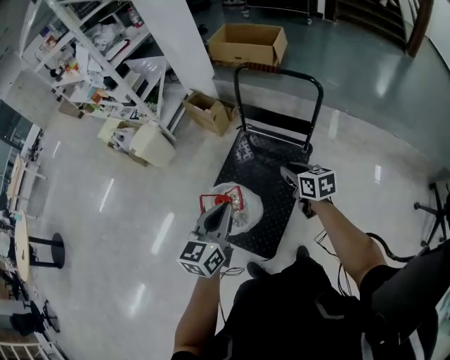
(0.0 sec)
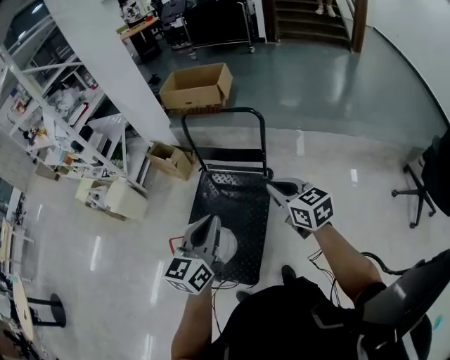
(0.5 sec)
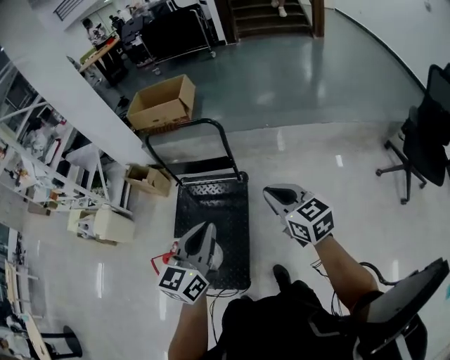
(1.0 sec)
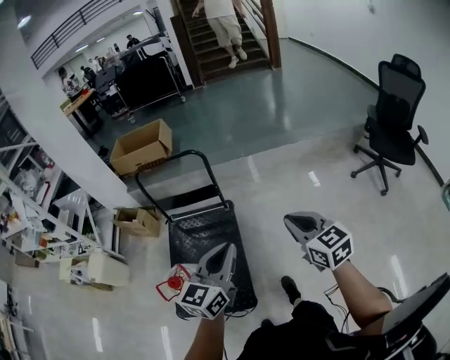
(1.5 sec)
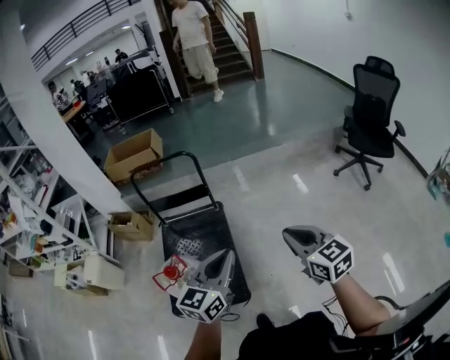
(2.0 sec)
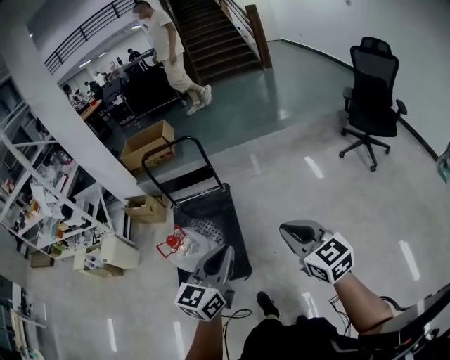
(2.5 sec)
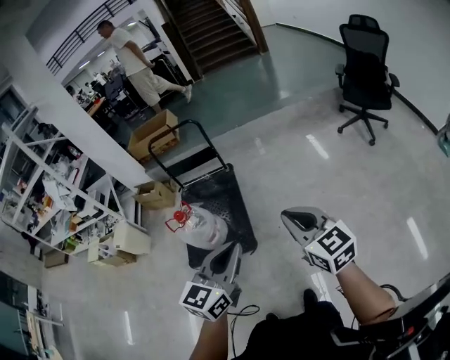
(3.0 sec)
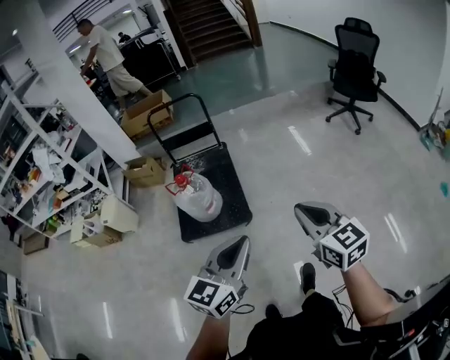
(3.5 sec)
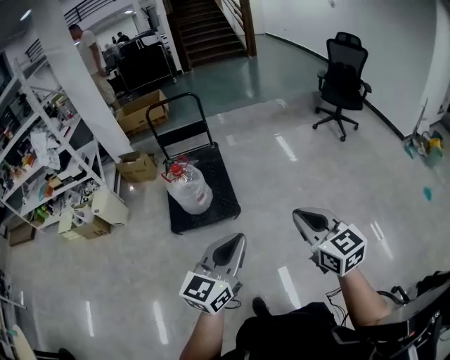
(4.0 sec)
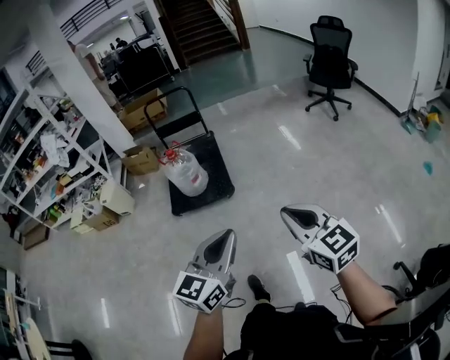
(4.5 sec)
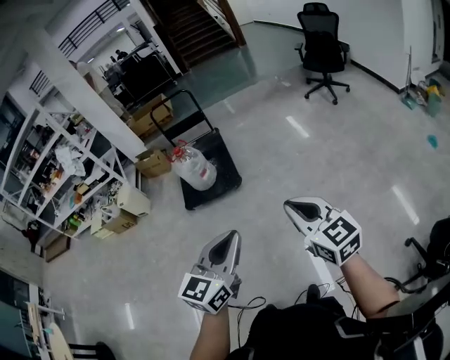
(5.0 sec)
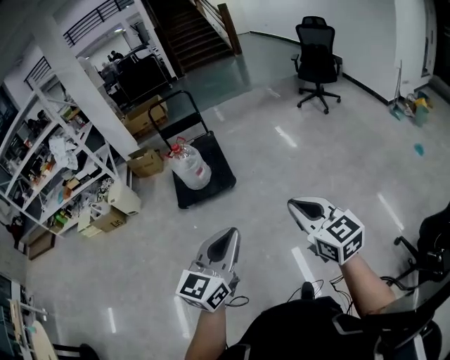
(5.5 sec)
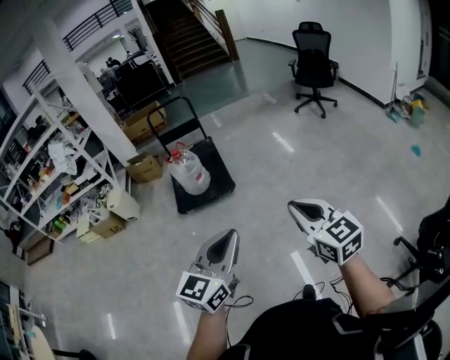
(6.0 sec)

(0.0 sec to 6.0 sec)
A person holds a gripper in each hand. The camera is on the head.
0.0 sec - 2.0 sec: The right gripper changes place by some 50 cm, rotates about 40 degrees, and closes up. The left gripper changes place by about 30 cm, and turns by some 40 degrees.
2.0 sec - 4.0 sec: Both grippers are carried backward, roughly 60 cm.
4.0 sec - 6.0 sec: The grippers both shift backward by some 35 cm.

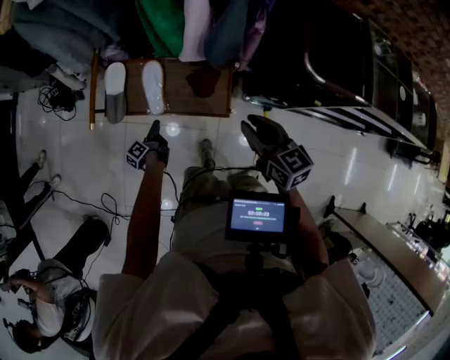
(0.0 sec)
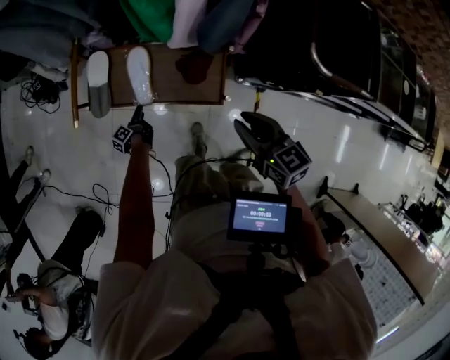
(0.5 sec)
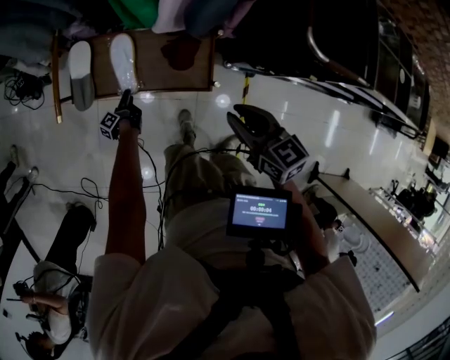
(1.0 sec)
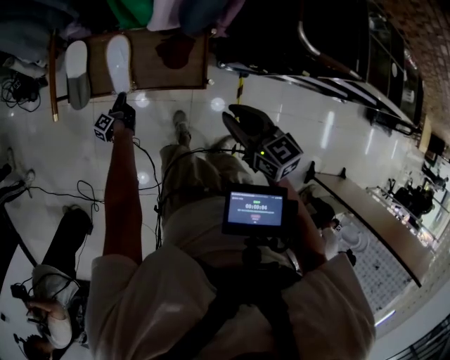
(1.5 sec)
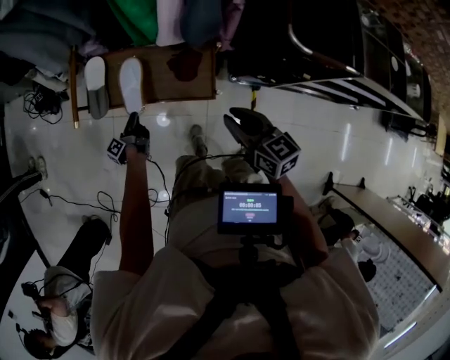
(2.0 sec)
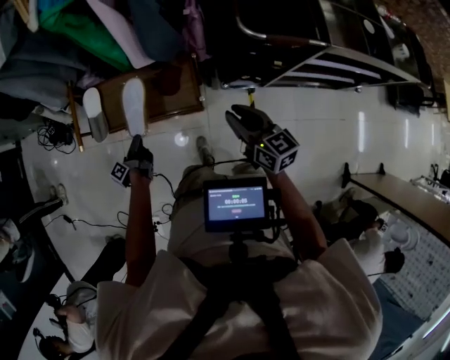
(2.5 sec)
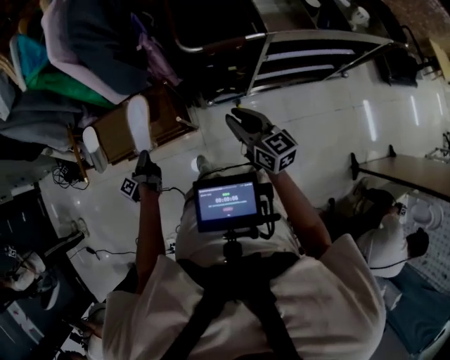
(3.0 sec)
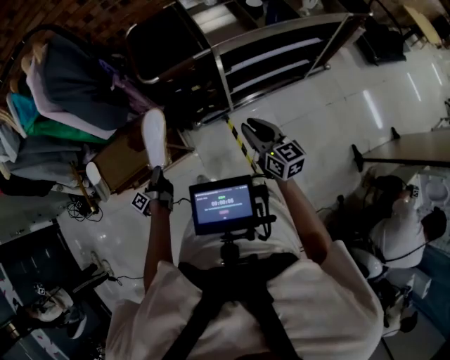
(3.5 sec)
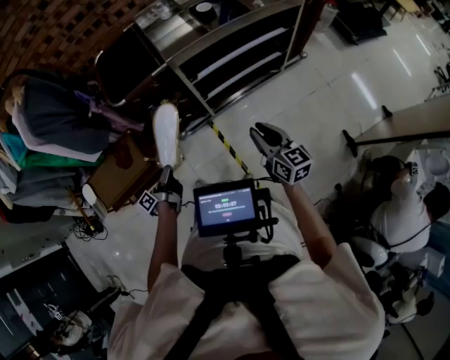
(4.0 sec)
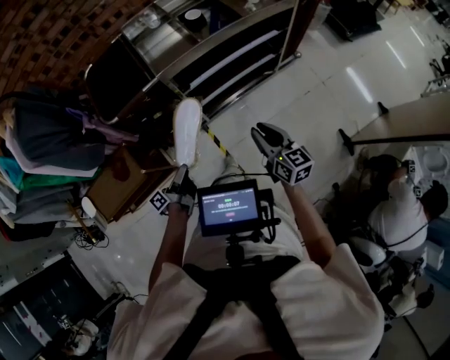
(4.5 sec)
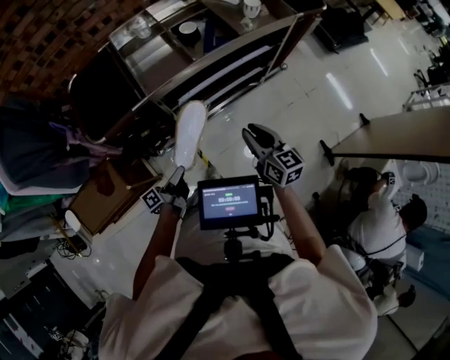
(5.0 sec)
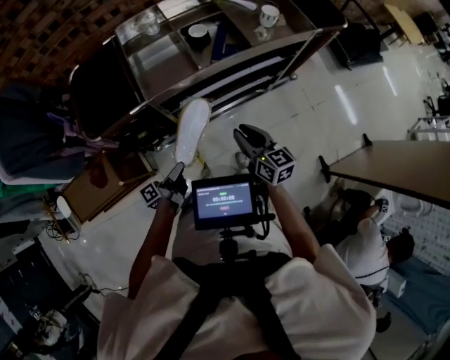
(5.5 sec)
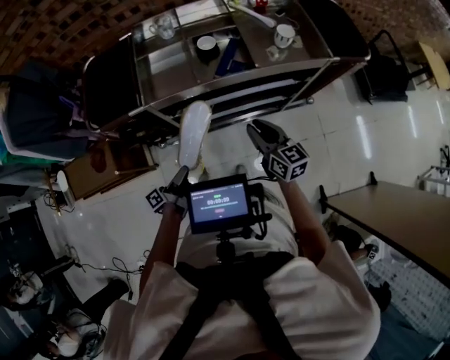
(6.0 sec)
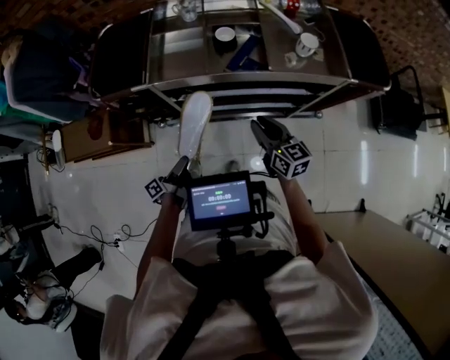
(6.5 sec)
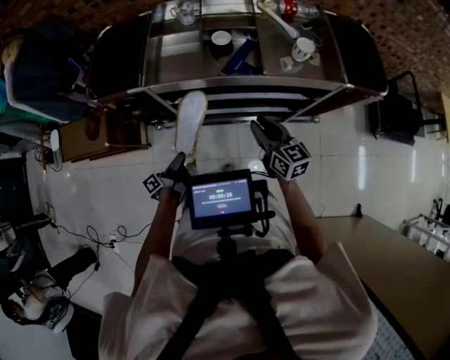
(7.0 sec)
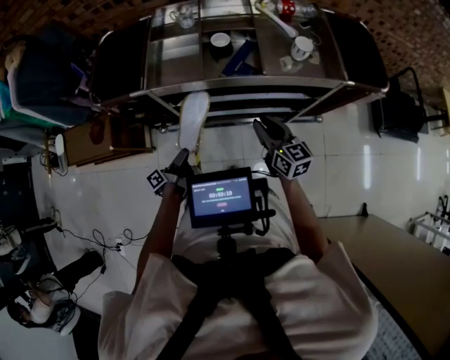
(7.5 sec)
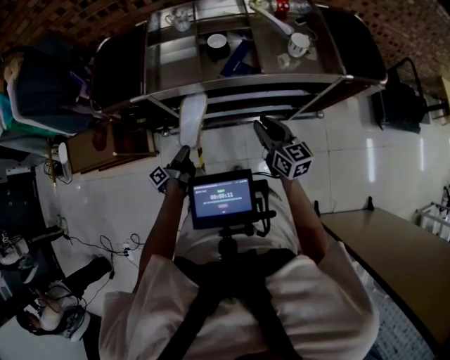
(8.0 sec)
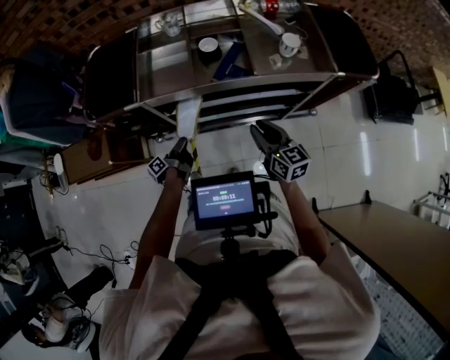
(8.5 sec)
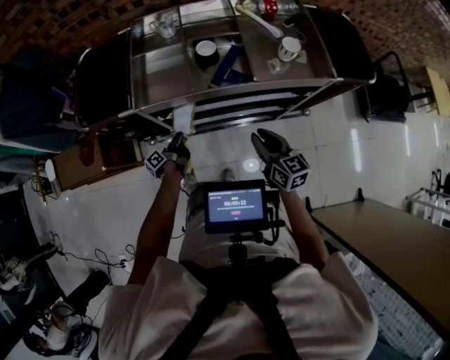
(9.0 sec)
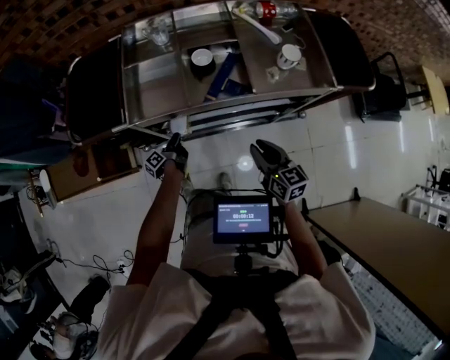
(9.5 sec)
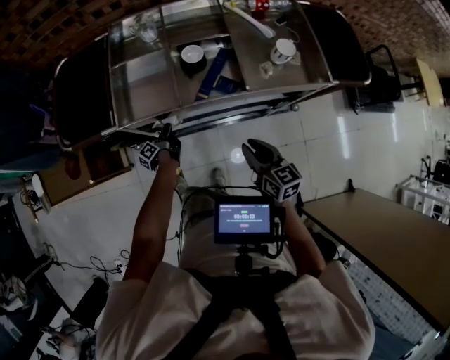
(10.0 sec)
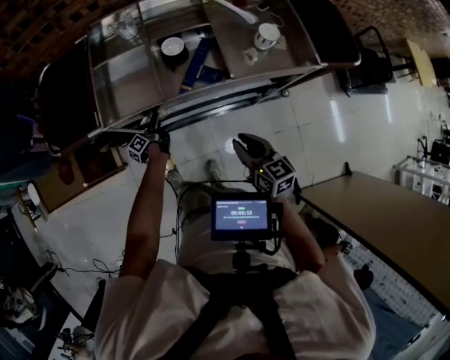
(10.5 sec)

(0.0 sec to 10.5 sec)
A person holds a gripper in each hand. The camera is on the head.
2.0 sec - 4.0 sec: The right gripper moves some 60 cm, and rotates approximately 40 degrees.
4.0 sec - 6.5 sec: The right gripper shifts by approximately 35 cm, and swivels about 30 degrees.

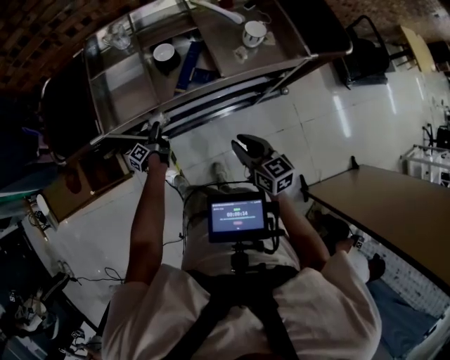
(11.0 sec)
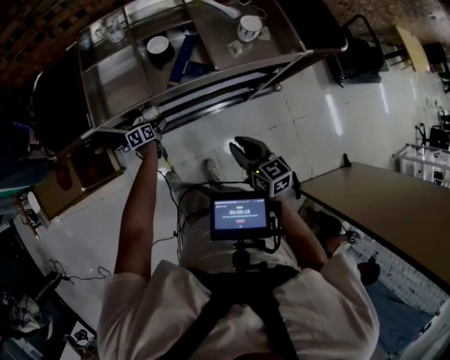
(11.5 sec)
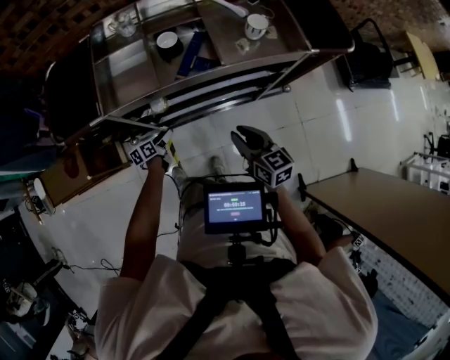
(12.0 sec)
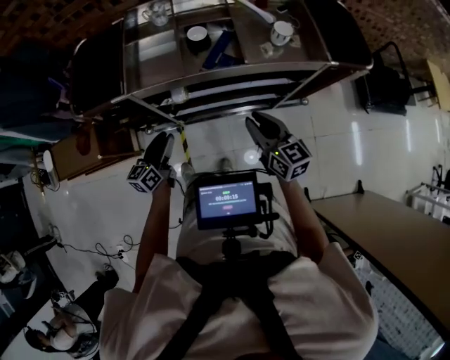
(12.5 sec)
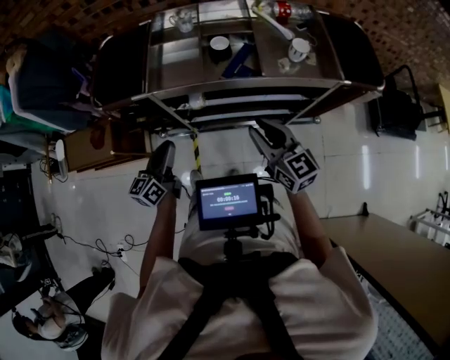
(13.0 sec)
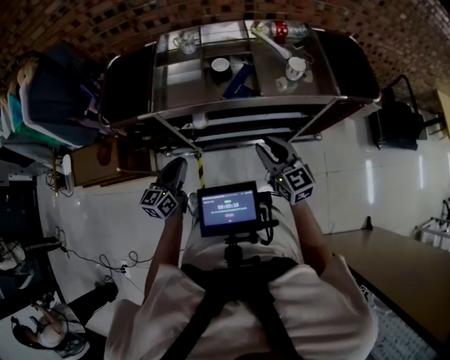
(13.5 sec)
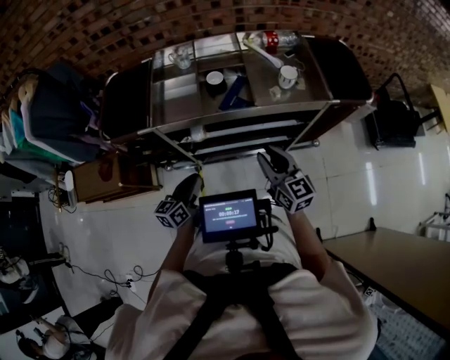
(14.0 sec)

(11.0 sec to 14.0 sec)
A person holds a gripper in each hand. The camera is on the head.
11.0 sec - 12.5 sec: The right gripper is displaced upward by some 5 cm.

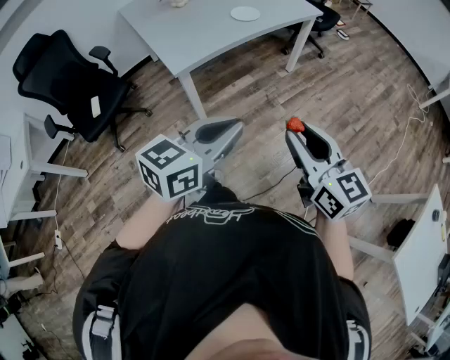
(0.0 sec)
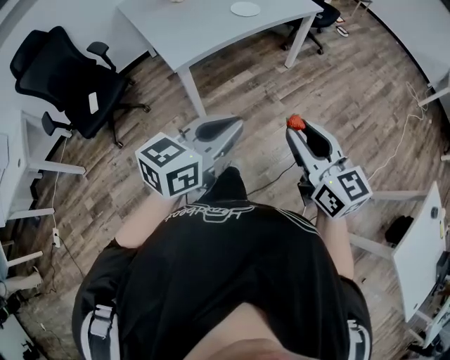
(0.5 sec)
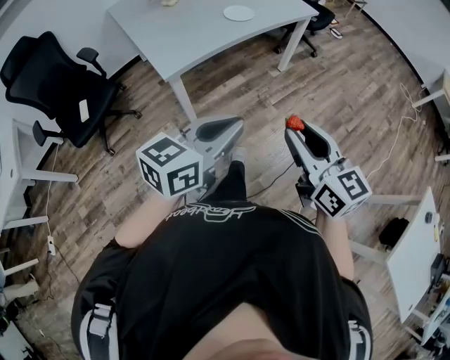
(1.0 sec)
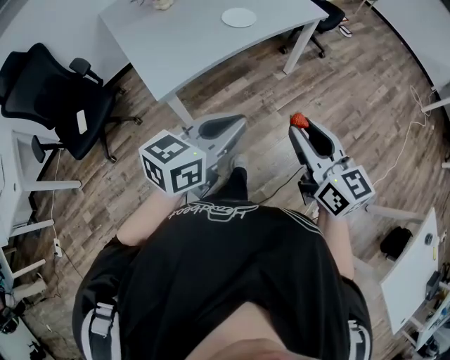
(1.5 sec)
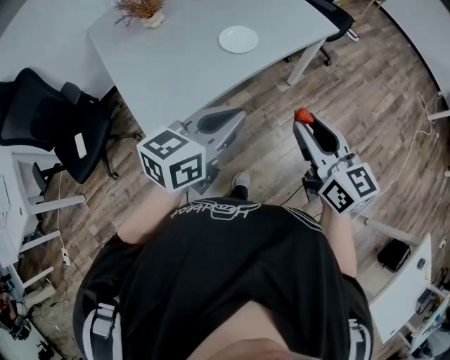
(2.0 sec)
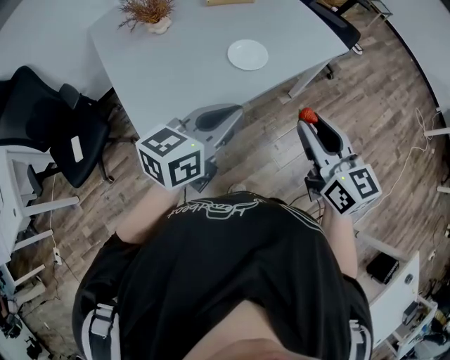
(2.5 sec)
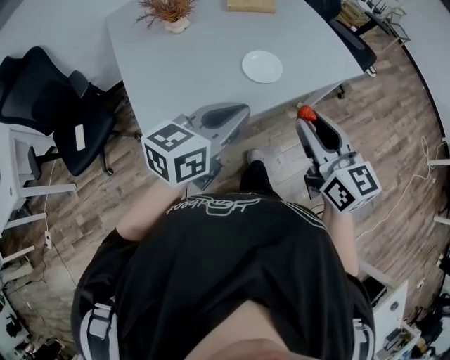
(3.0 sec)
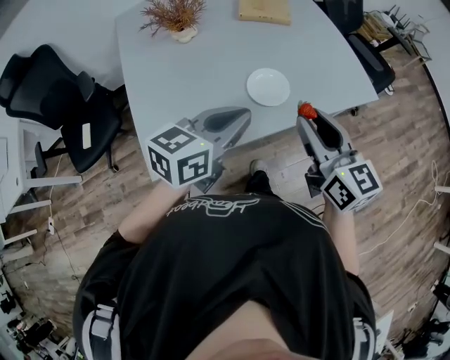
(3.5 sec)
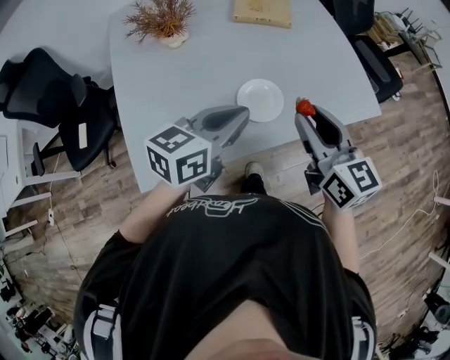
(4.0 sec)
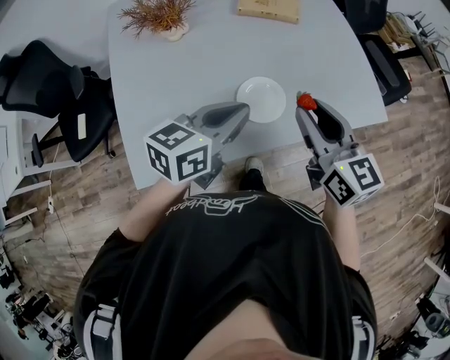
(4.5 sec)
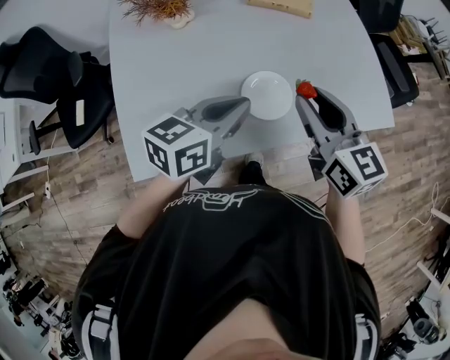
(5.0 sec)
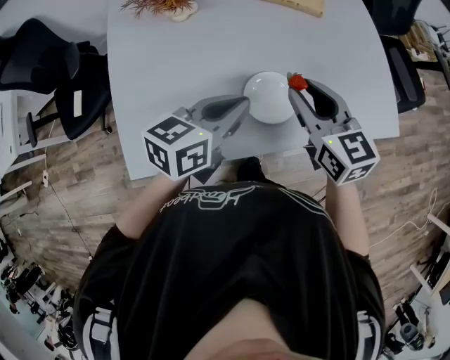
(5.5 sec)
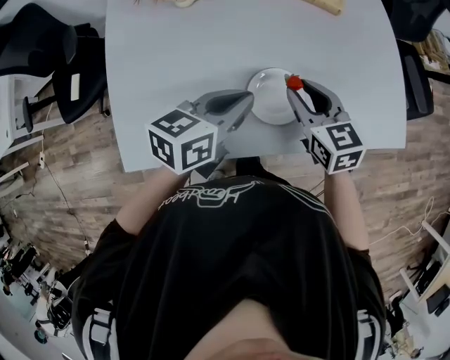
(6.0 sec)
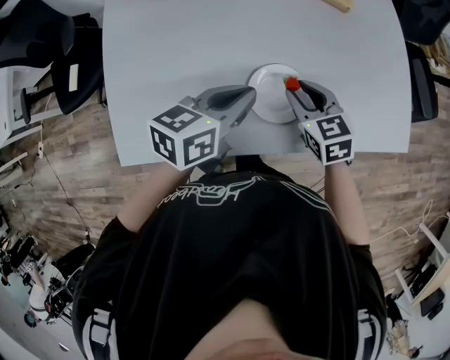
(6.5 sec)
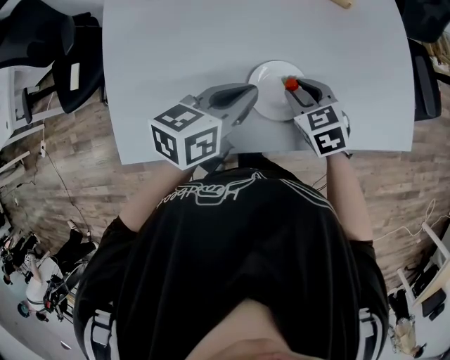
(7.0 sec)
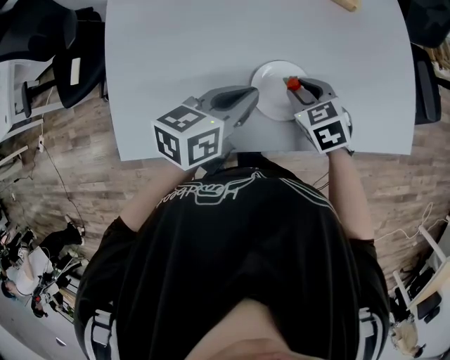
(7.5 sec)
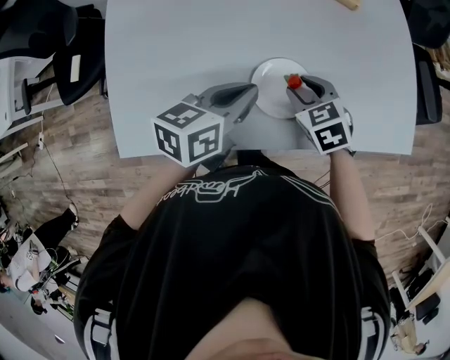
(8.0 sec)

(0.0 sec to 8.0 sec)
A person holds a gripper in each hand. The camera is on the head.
0.0 sec - 2.0 sec: The grippers both shift forward by roughly 40 cm.
2.0 sec - 4.0 sec: The grippers both shift forward by some 30 cm.
4.0 sec - 6.0 sec: The left gripper heads downward and forward, covering some 15 cm. The right gripper shifts approximately 20 cm downward and forward, and changes its angle by approximately 30 degrees.
6.0 sec - 8.0 sec: The right gripper travels downward by some 10 cm, and rotates approximately 30 degrees.
